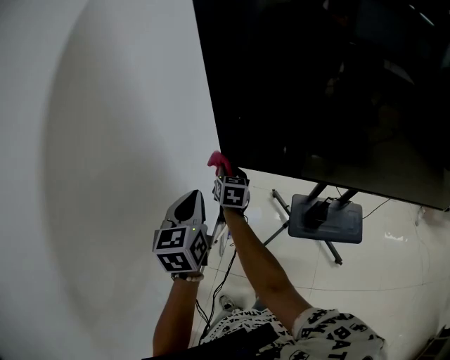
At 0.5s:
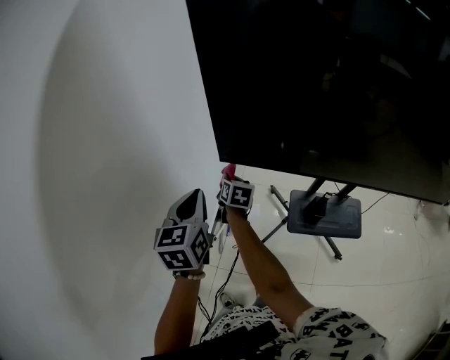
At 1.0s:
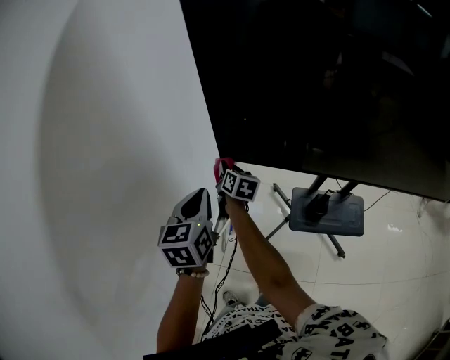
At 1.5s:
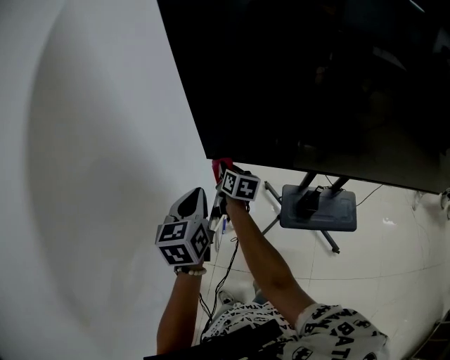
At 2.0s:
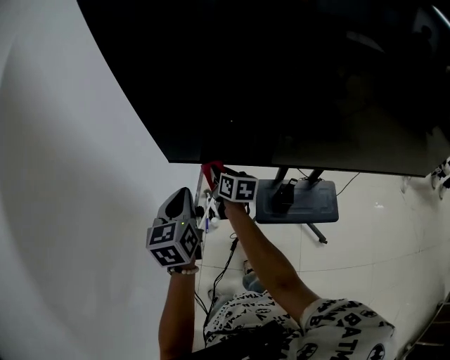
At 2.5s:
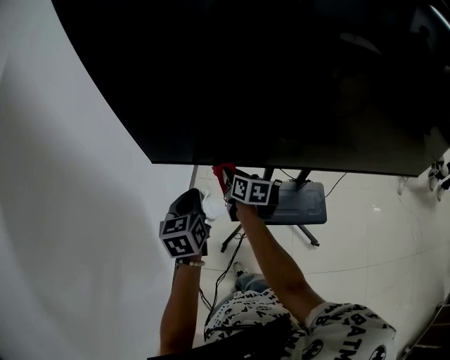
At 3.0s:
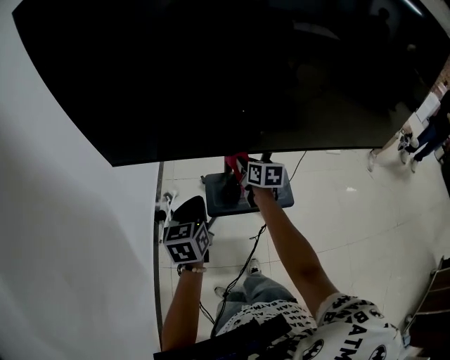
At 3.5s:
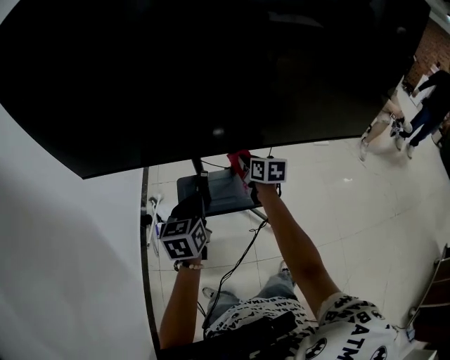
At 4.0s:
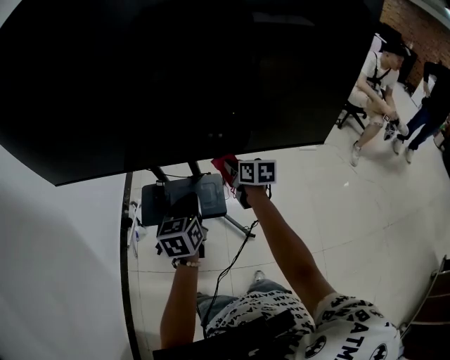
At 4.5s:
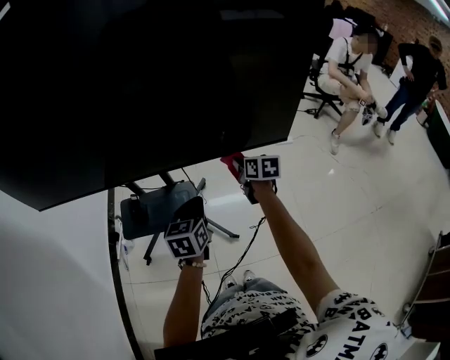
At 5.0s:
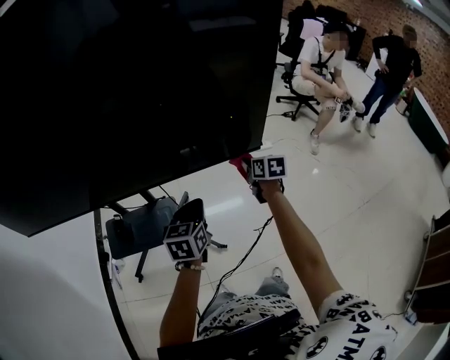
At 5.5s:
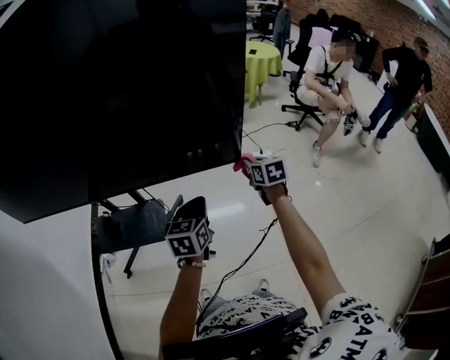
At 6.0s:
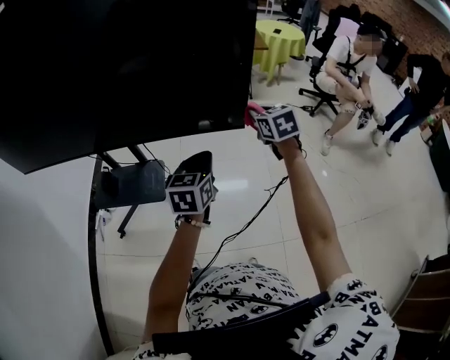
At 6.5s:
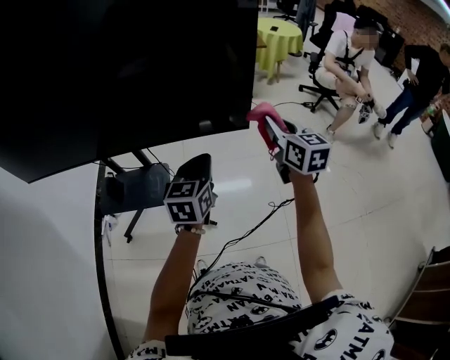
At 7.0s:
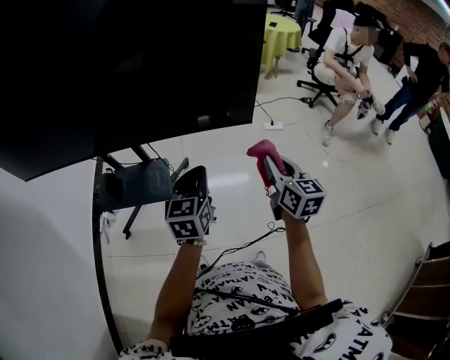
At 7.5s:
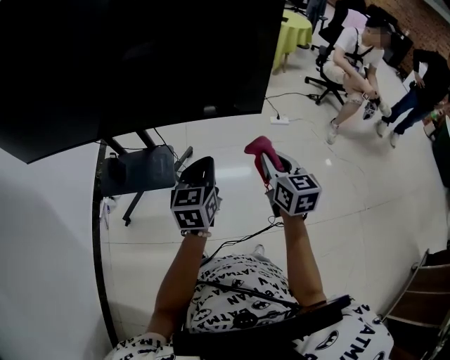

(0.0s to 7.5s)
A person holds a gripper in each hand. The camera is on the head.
0.0s - 2.0s: The two grippers go about 15 cm to the right. The right gripper turns by approximately 20 degrees.
2.0s - 4.0s: The two grippers travel together, to the right, about 60 cm.
4.0s - 5.5s: The two grippers go roughly 35 cm to the right. The right gripper rotates about 30 degrees.
5.5s - 7.5s: The right gripper goes some 15 cm backward. The left gripper travels backward by roughly 5 cm.

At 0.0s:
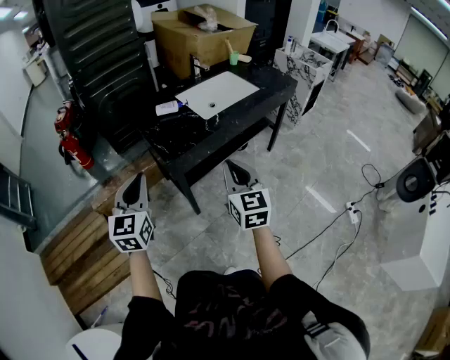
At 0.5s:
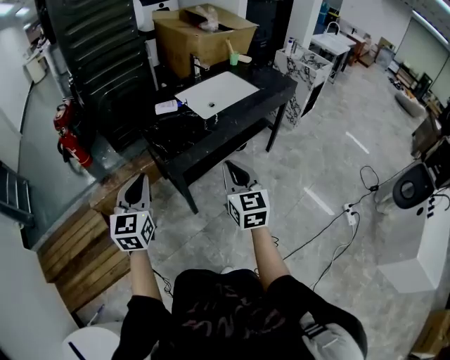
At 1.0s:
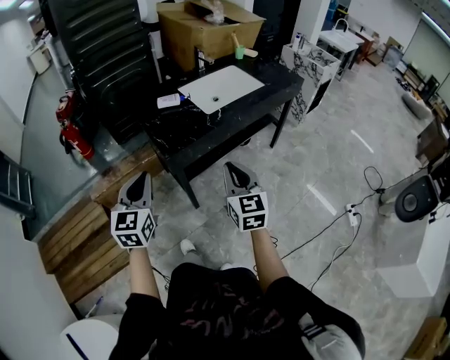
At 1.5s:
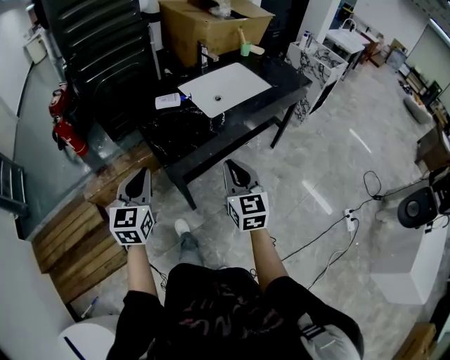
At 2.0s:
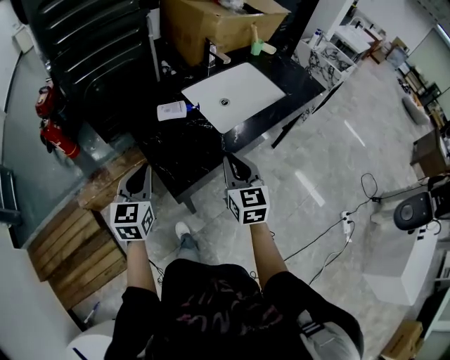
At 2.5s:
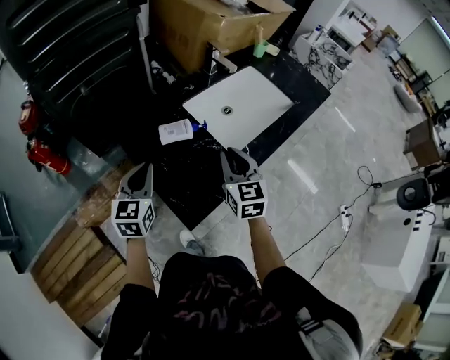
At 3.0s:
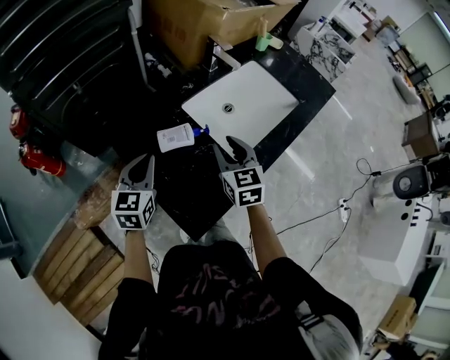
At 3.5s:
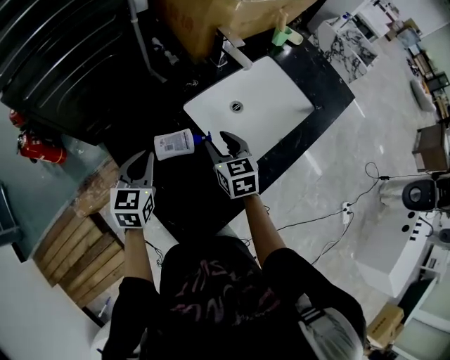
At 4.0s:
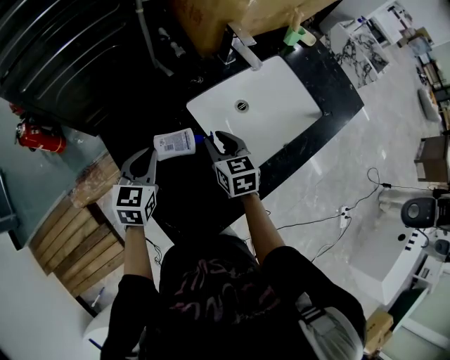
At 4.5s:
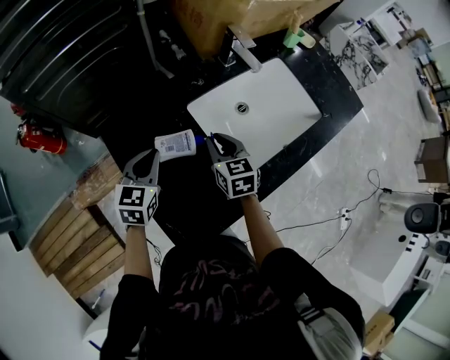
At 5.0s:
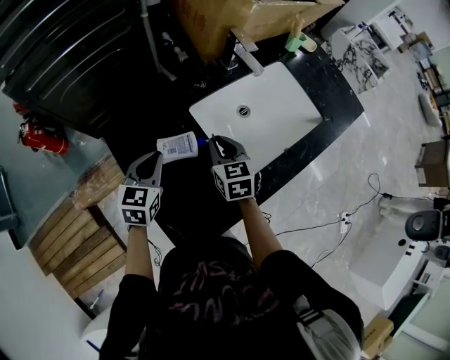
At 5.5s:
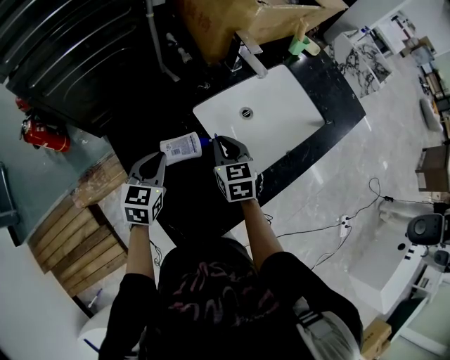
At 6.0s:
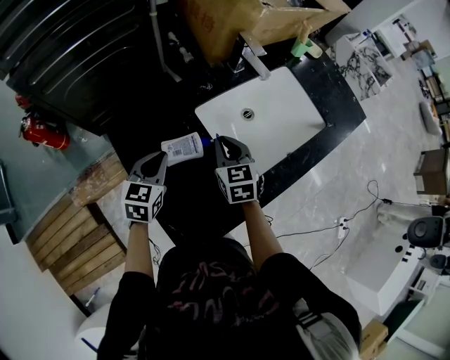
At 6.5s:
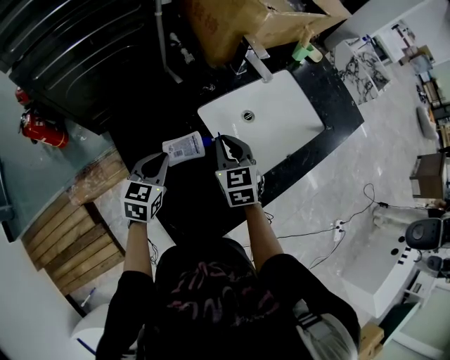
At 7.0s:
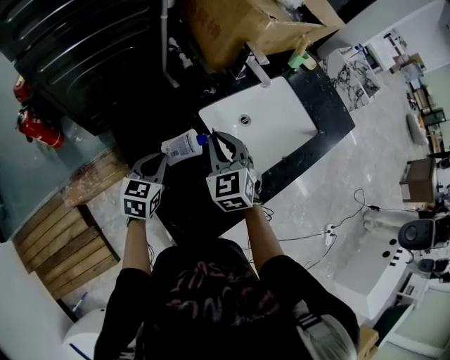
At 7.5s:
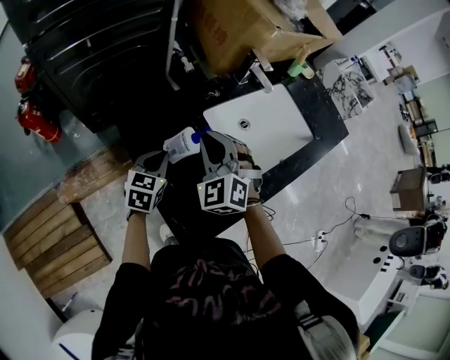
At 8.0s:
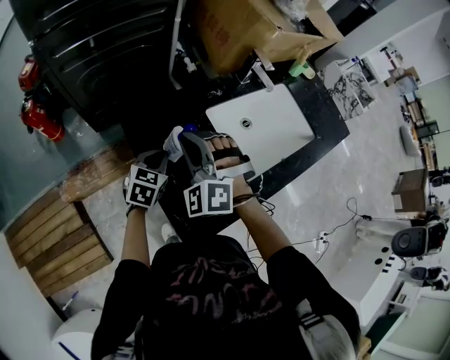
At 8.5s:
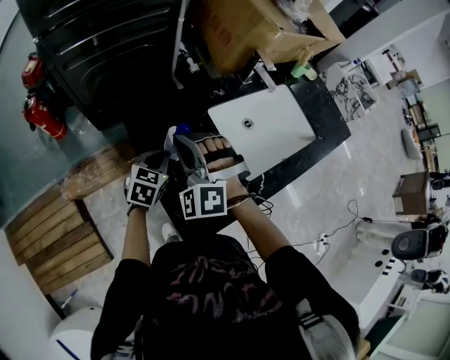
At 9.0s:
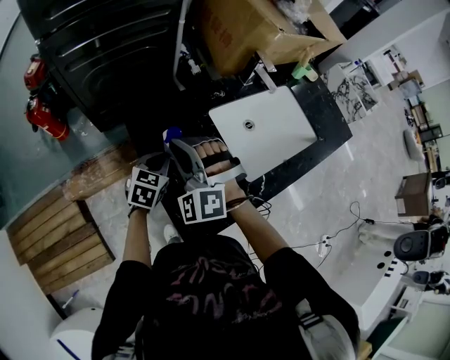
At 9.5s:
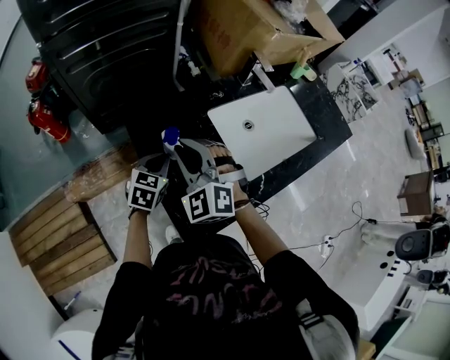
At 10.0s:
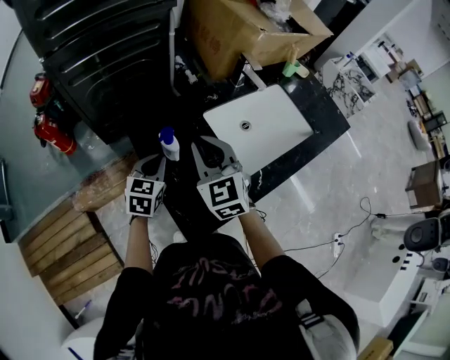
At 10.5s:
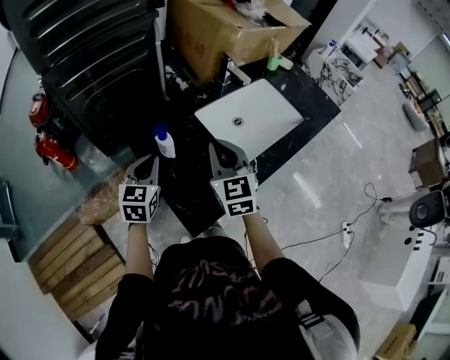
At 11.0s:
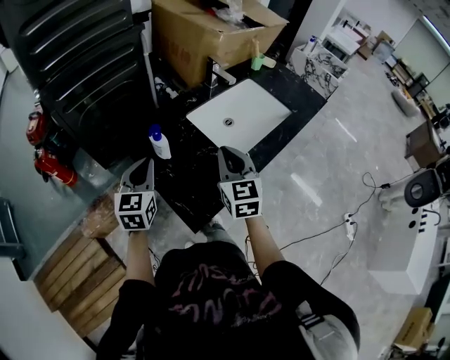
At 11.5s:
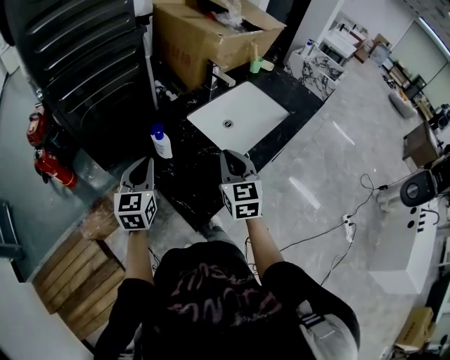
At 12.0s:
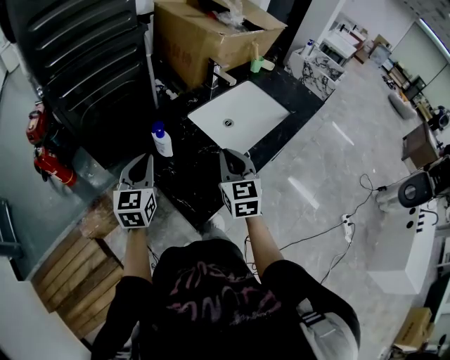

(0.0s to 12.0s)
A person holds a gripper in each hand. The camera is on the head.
0.0s - 2.0s: The grippers both shift forward by about 25 cm.
2.0s - 4.0s: The right gripper moves forward and downward, approximately 35 cm, swivels about 20 degrees, and opens. The left gripper travels forward by about 30 cm.
4.0s - 6.0s: The right gripper closes.
6.0s - 8.0s: The left gripper moves approximately 5 cm; the right gripper heads to the left, upward and backward, covering about 20 cm, and rolls counterclockwise, seen from behind, by approximately 70 degrees.
8.0s - 10.0s: The right gripper moves to the right, approximately 5 cm, and rotates around the line of its fingers by about 50 degrees, clockwise from behind. Meanwhile the left gripper is displaced upward by some 5 cm.
10.0s - 12.0s: The right gripper travels to the right and backward by approximately 15 cm, and swivels roughly 30 degrees, while the left gripper heads upward and backward, covering roughly 15 cm.

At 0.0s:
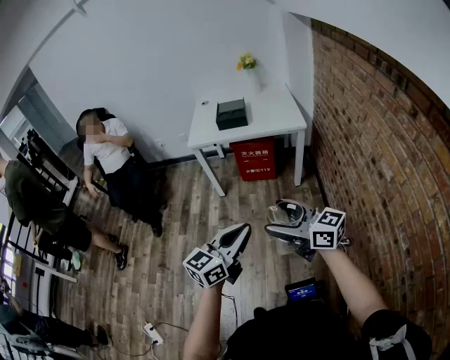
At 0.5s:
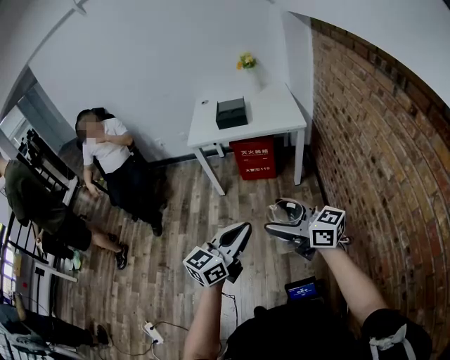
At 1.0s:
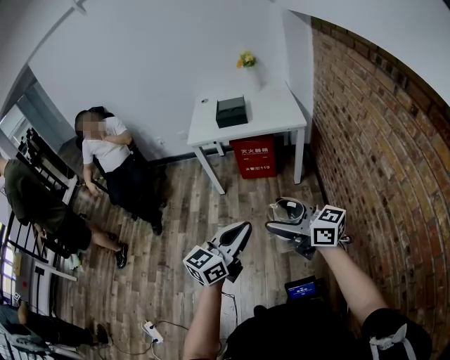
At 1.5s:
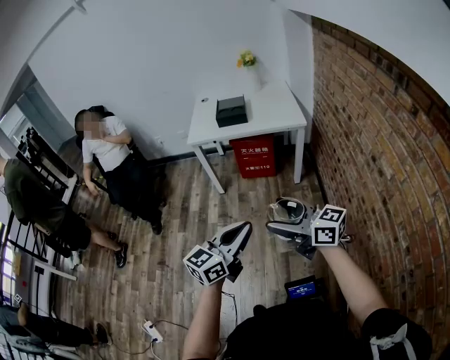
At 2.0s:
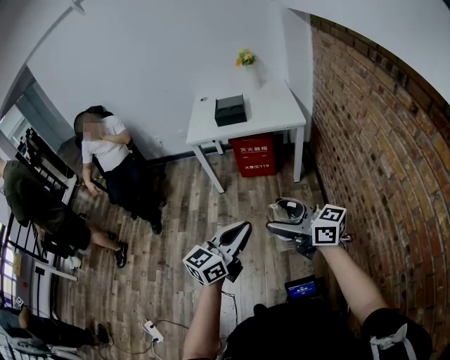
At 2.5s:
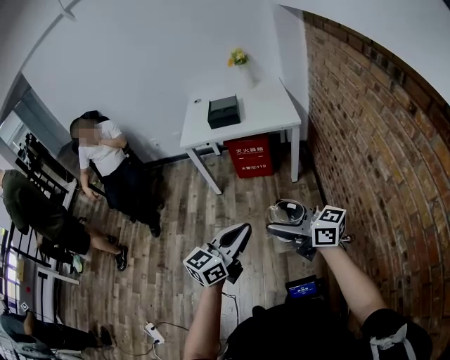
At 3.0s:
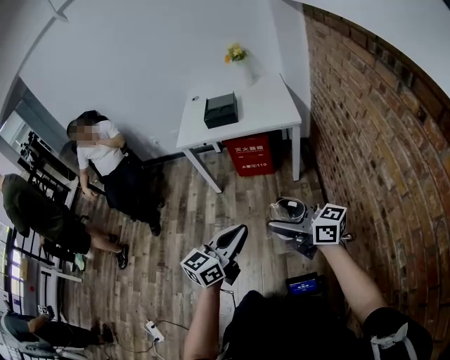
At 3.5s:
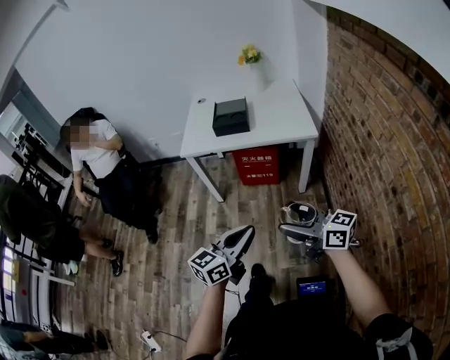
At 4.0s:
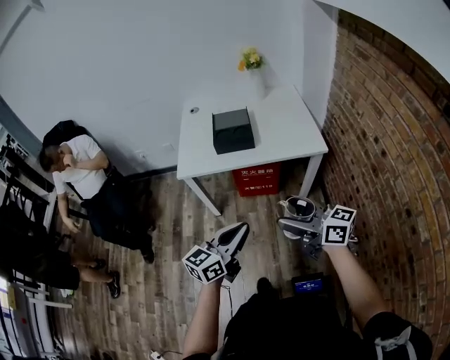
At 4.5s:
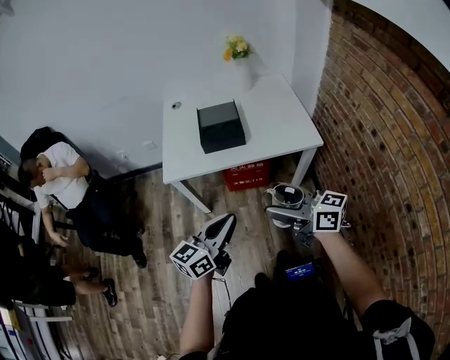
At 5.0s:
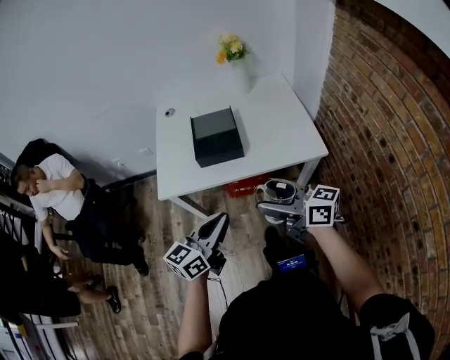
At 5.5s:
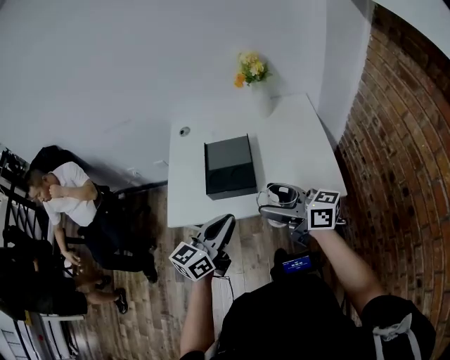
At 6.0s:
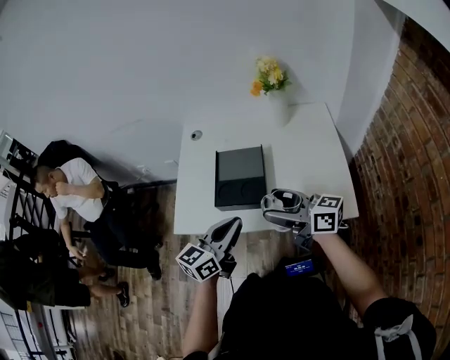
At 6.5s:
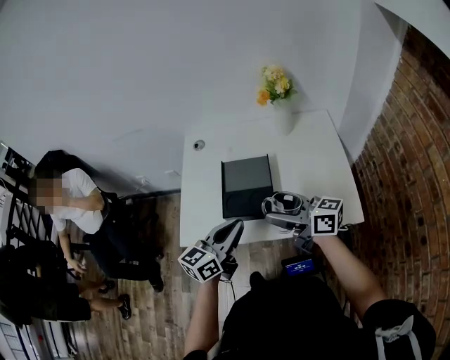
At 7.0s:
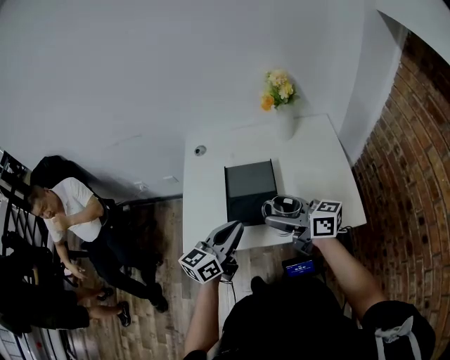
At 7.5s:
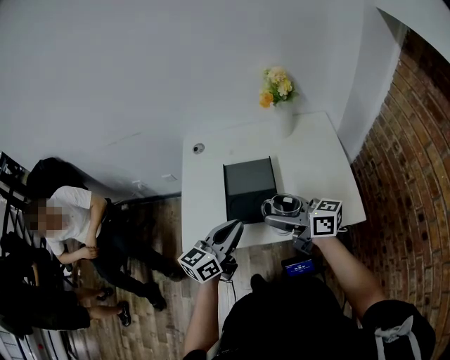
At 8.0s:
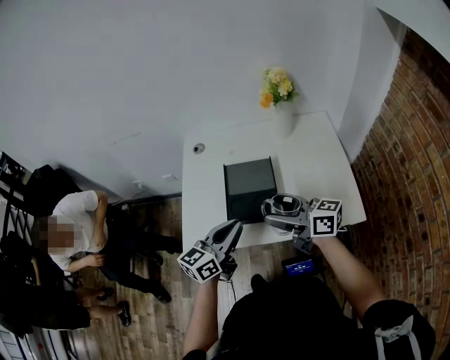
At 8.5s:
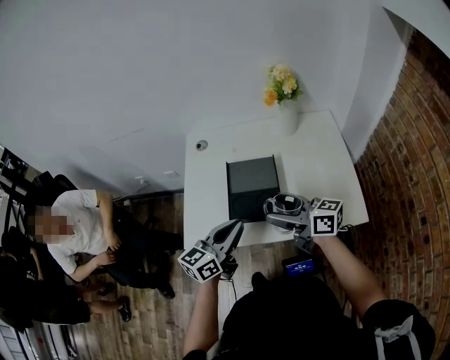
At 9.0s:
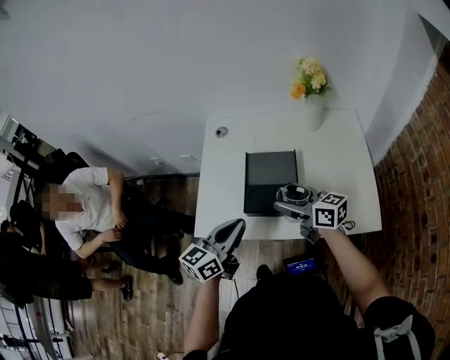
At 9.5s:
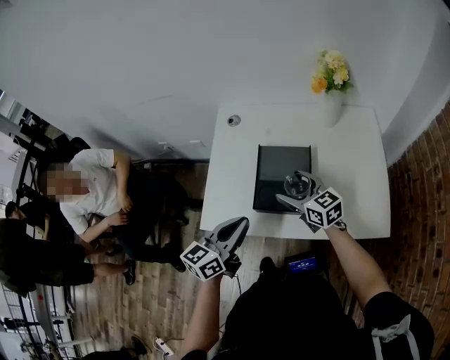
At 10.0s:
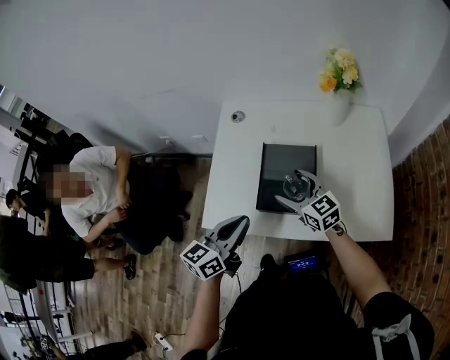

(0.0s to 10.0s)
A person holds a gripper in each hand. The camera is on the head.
0.0s - 2.0s: The two grippers keep their place.
2.0s - 4.0s: Both grippers travel together forward, roughly 35 cm.
4.0s - 6.0s: The two grippers go roughly 40 cm forward.
6.0s - 8.0s: The right gripper is displaced to the left by about 5 cm, while the left gripper shifts roughly 5 cm forward and to the left.
8.0s - 10.0s: The left gripper is displaced to the left by about 5 cm, while the right gripper heads downward and forward, covering some 15 cm, and turns by about 30 degrees.
